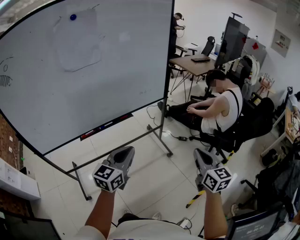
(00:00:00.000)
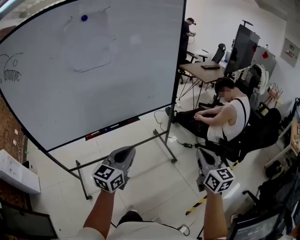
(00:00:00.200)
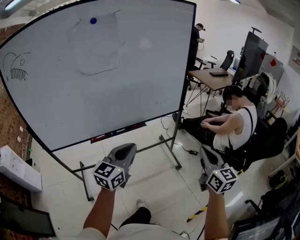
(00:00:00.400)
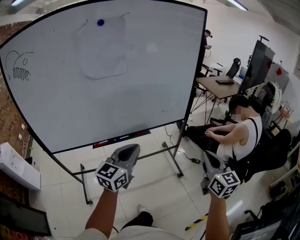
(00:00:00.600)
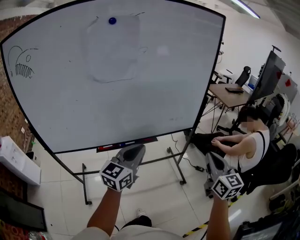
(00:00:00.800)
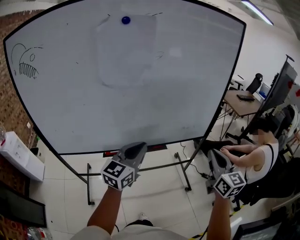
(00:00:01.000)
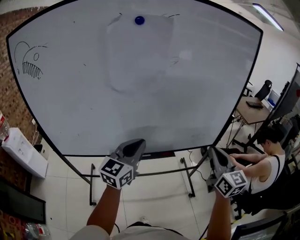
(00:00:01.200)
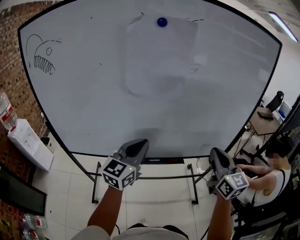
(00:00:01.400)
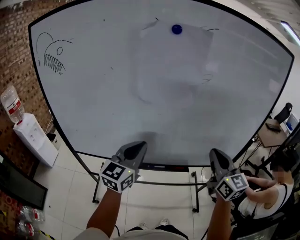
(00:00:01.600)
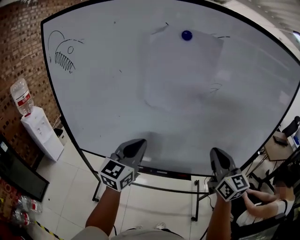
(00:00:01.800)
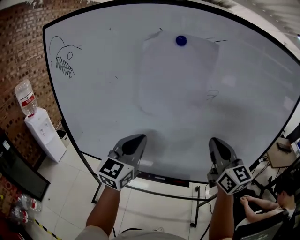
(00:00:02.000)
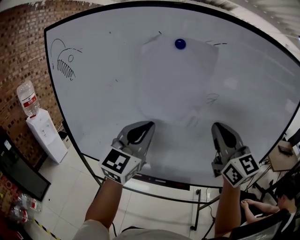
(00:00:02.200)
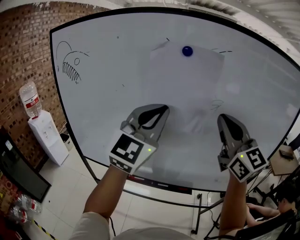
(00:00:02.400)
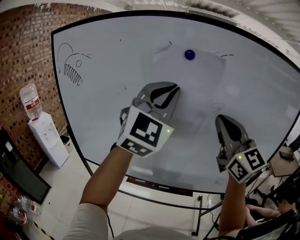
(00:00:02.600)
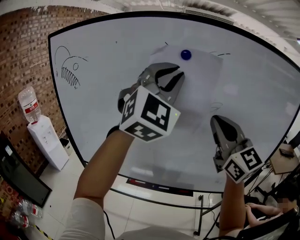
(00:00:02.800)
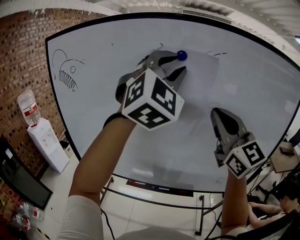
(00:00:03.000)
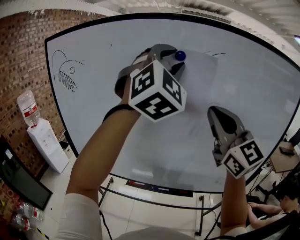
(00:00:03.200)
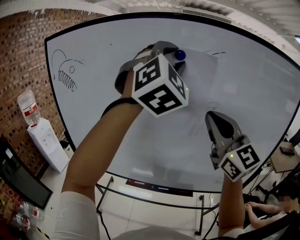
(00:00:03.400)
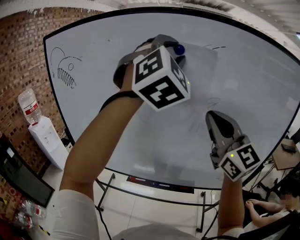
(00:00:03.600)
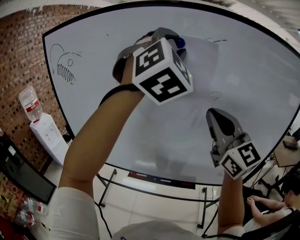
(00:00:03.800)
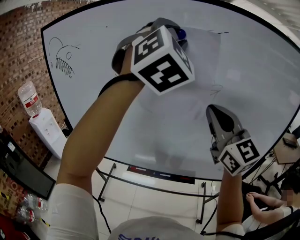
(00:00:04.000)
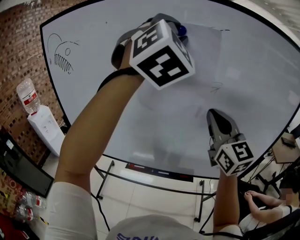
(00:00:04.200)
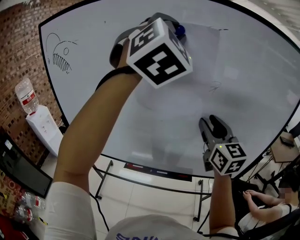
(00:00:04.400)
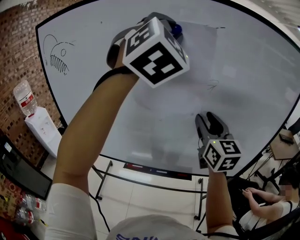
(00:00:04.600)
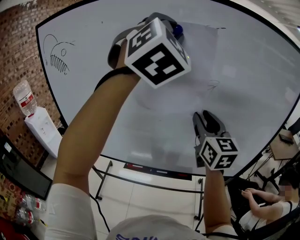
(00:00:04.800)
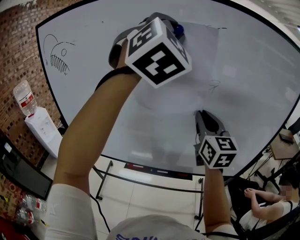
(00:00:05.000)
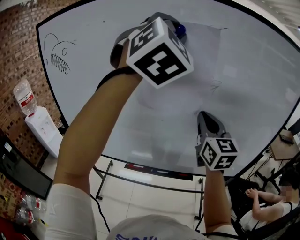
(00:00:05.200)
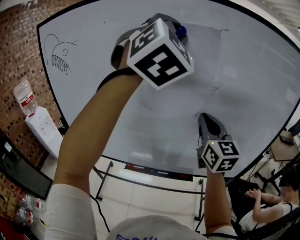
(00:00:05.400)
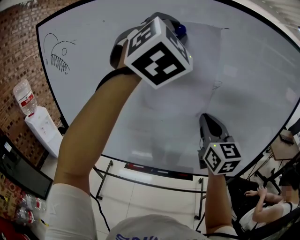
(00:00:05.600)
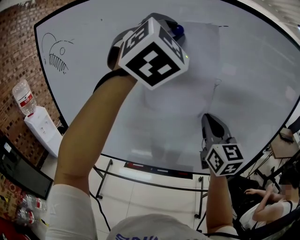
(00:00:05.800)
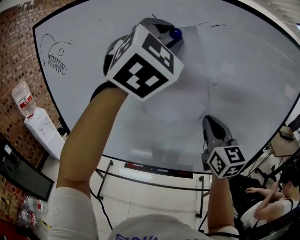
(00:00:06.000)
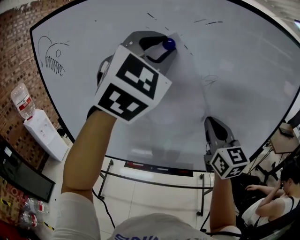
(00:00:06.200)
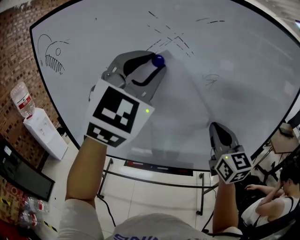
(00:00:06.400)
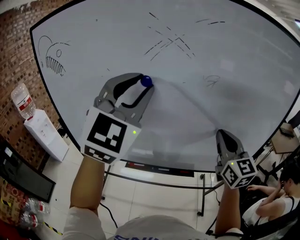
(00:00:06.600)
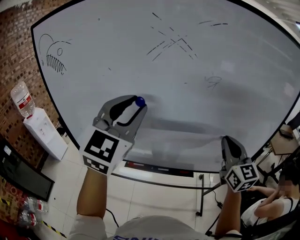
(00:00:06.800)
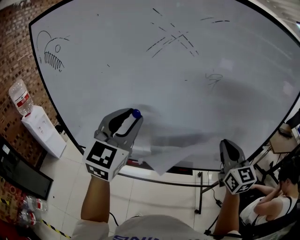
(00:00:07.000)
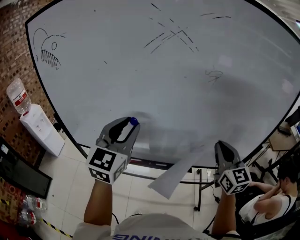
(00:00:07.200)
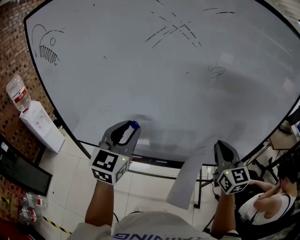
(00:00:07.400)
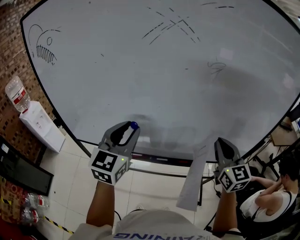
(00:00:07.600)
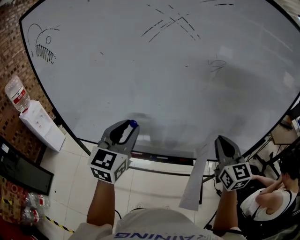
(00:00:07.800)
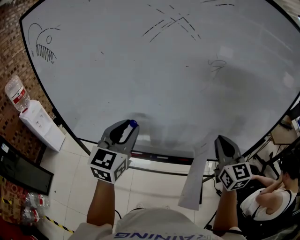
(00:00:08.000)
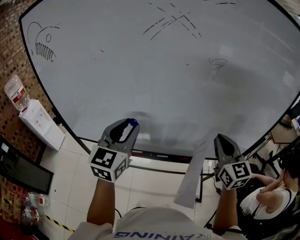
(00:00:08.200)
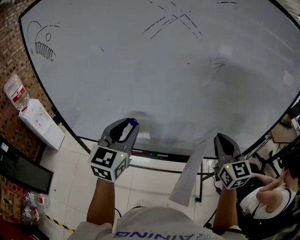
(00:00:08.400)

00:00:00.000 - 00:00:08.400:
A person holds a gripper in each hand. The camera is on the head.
00:00:00.000 - 00:00:01.400: The right gripper shifts approximately 40 cm forward and to the left, and turns by approximately 30 degrees, while the left gripper shifts approximately 30 cm forward, to the left and upward, and changes its angle by roughly 30 degrees.
00:00:01.400 - 00:00:02.800: The left gripper goes about 35 cm upward, and rolls clockwise, seen from behind, by approximately 60 degrees. The right gripper shifts about 25 cm upward, forward and to the left, and changes its angle by approximately 30 degrees.
00:00:02.800 - 00:00:04.200: The left gripper changes place by some 5 cm, and opens up. Meanwhile the right gripper travels downward by roughly 5 cm.
00:00:04.200 - 00:00:05.600: The right gripper opens and closes again.
00:00:05.600 - 00:00:07.000: The left gripper shifts about 25 cm downward, and swivels some 40 degrees. Meanwhile the right gripper travels to the right, downward and backward by about 15 cm.
00:00:07.000 - 00:00:08.400: The left gripper moves downward, some 10 cm.

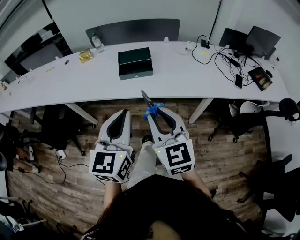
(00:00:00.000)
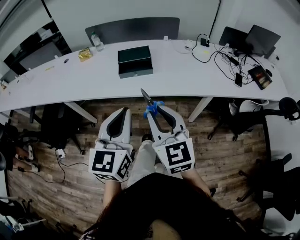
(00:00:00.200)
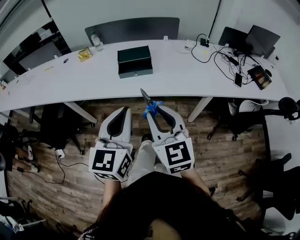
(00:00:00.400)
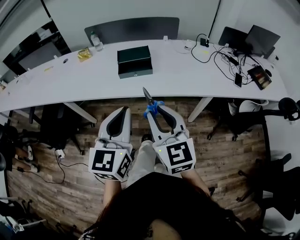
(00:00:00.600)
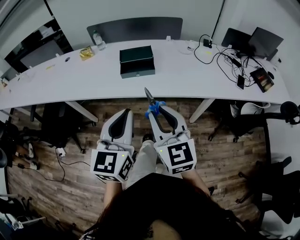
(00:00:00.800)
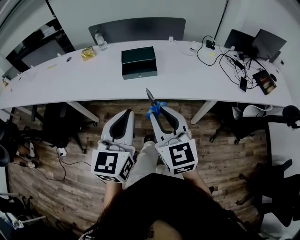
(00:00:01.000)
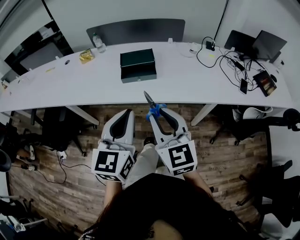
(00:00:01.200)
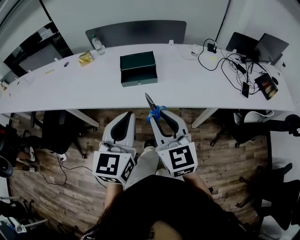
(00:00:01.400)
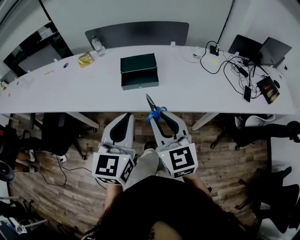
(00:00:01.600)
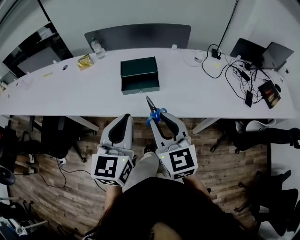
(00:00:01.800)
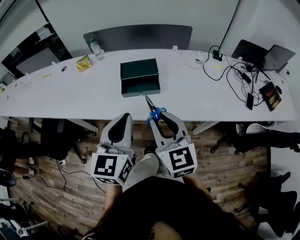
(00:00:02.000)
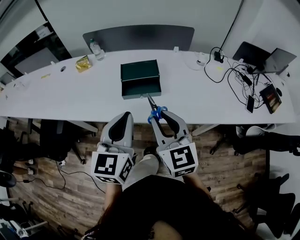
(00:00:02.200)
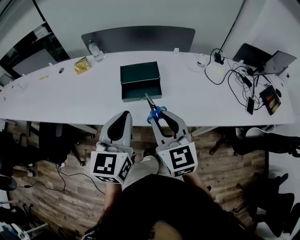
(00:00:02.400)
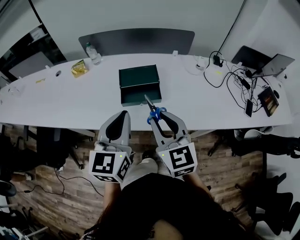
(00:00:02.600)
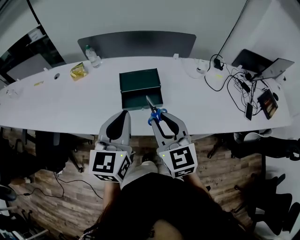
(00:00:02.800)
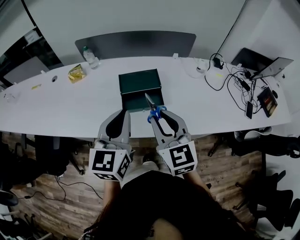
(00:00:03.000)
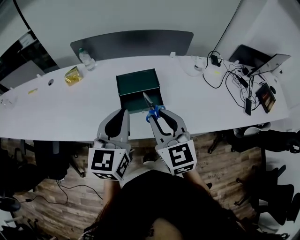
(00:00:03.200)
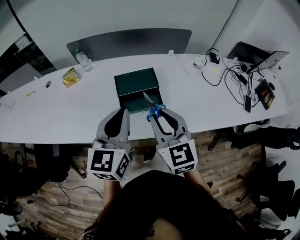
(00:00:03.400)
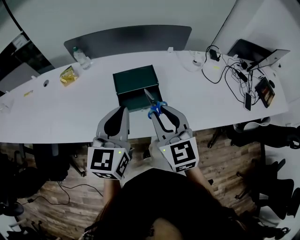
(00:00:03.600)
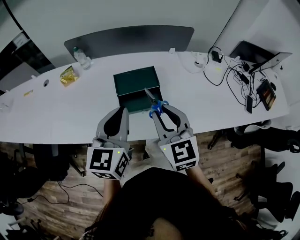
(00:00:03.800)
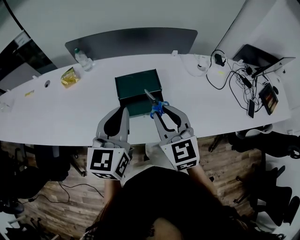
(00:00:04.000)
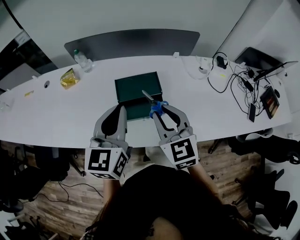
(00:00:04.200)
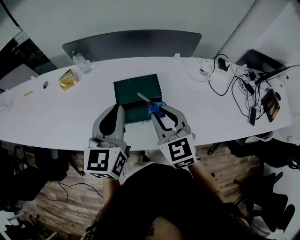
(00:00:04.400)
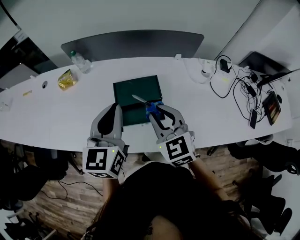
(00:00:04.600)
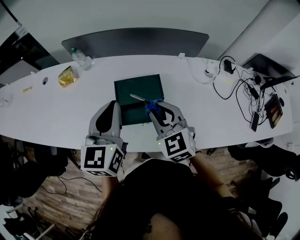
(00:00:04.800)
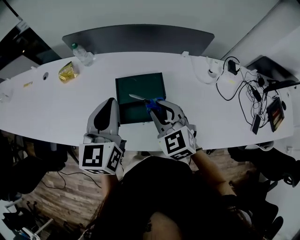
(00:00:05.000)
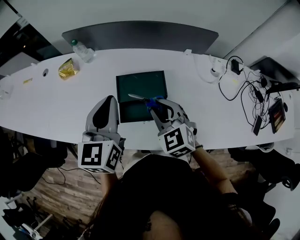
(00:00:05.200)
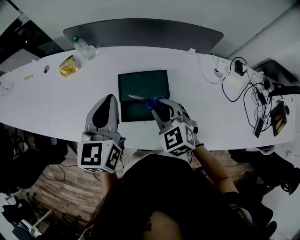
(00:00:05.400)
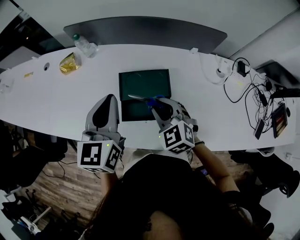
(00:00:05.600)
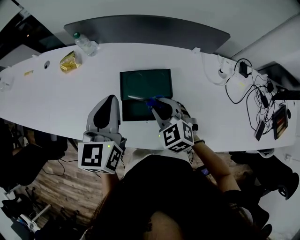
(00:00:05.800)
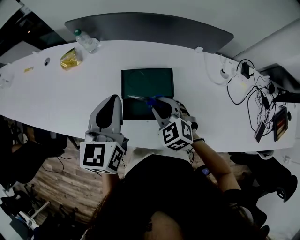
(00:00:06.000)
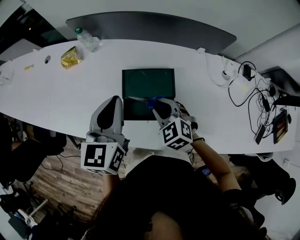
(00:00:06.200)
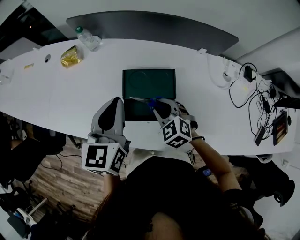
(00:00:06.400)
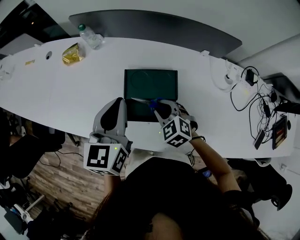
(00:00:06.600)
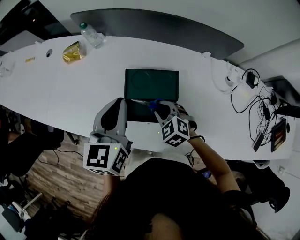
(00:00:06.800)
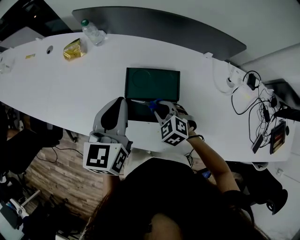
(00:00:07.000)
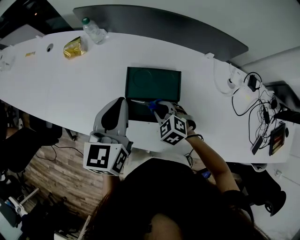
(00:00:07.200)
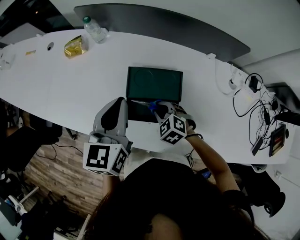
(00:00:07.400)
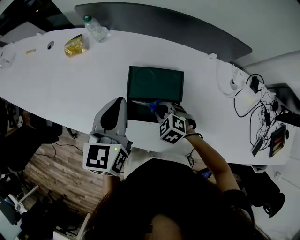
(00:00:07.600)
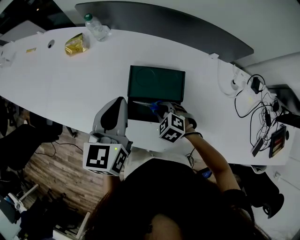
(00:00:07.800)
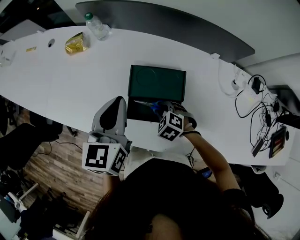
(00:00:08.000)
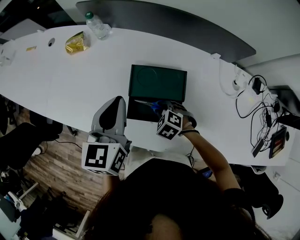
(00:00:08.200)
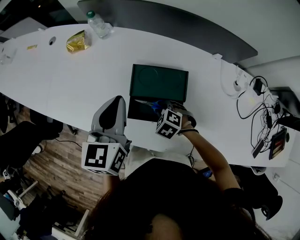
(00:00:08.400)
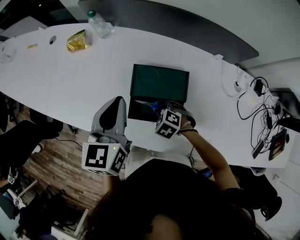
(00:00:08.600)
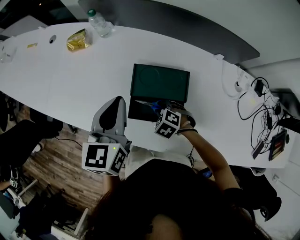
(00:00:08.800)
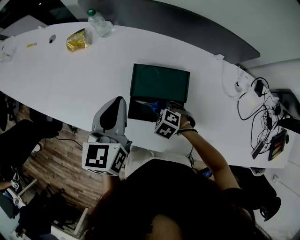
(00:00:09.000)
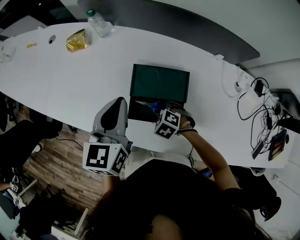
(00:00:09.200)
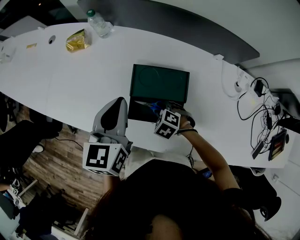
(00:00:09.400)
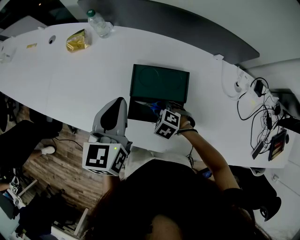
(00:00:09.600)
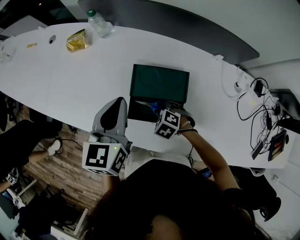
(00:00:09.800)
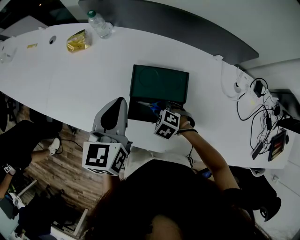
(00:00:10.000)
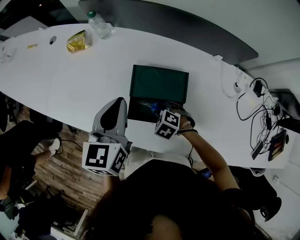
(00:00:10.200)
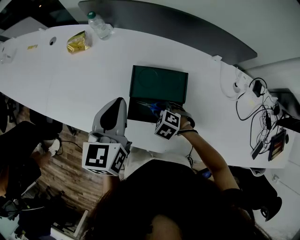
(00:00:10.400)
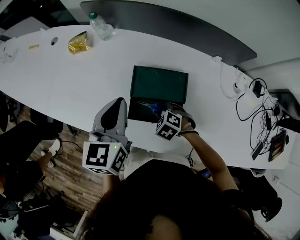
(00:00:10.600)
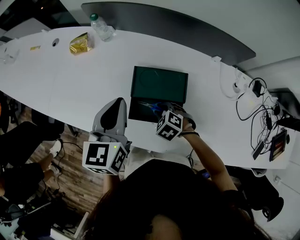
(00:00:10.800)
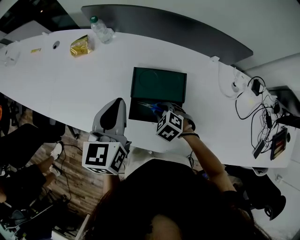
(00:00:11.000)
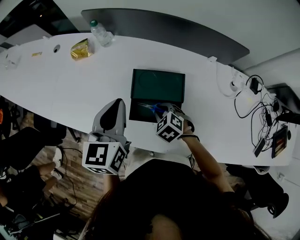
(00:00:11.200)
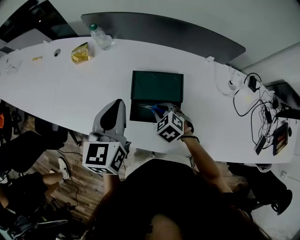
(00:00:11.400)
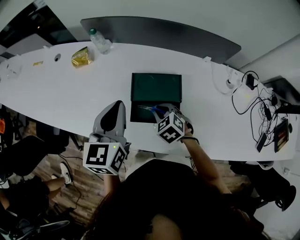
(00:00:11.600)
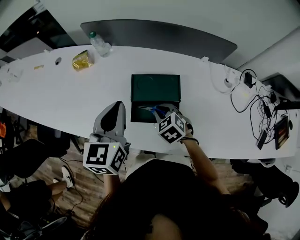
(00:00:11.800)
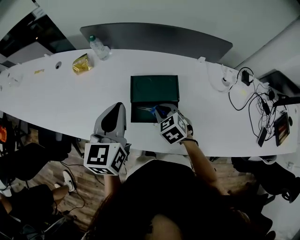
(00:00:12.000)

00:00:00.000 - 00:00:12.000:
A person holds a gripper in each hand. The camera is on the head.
00:00:00.000 - 00:00:01.600: The two grippers go approximately 10 cm forward.
00:00:01.600 - 00:00:03.000: Both grippers travel together forward, roughly 20 cm.
00:00:03.000 - 00:00:04.400: Both grippers move forward, approximately 15 cm.
00:00:04.400 - 00:00:06.000: The left gripper moves forward, some 10 cm. Meanwhile the right gripper travels downward and forward by some 15 cm, and swivels roughly 30 degrees.
00:00:06.000 - 00:00:07.600: The right gripper travels downward by some 10 cm, and swivels roughly 20 degrees.
00:00:07.600 - 00:00:09.000: The grippers make only small movements.
00:00:09.000 - 00:00:10.400: Neither gripper changes place.
00:00:10.400 - 00:00:12.000: The right gripper is displaced upward by some 10 cm, and changes its angle by approximately 40 degrees. Meanwhile the left gripper travels upward and backward by some 5 cm.

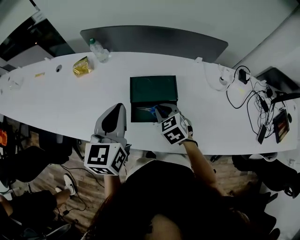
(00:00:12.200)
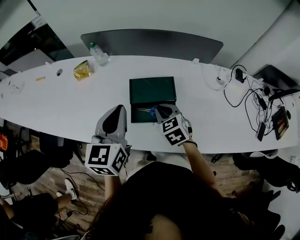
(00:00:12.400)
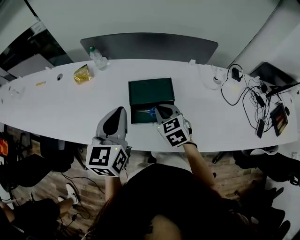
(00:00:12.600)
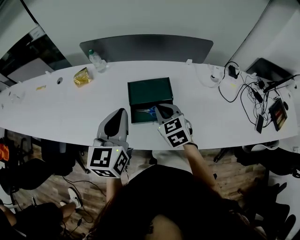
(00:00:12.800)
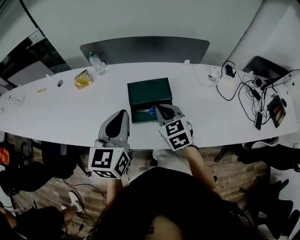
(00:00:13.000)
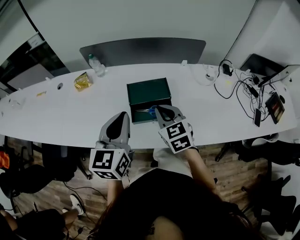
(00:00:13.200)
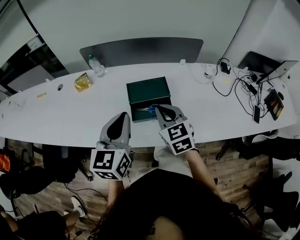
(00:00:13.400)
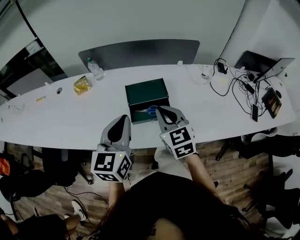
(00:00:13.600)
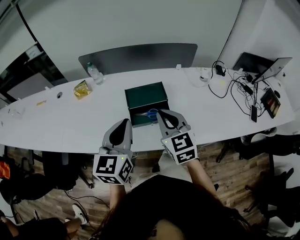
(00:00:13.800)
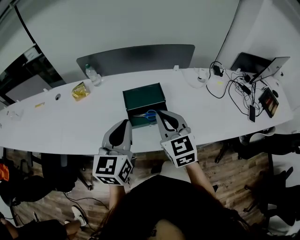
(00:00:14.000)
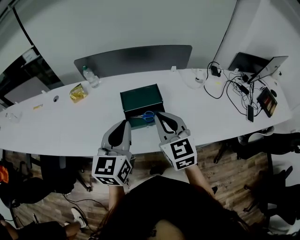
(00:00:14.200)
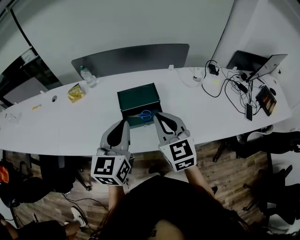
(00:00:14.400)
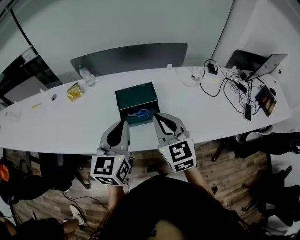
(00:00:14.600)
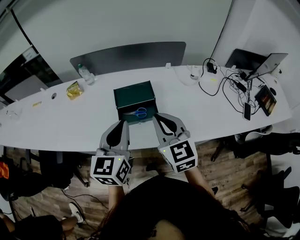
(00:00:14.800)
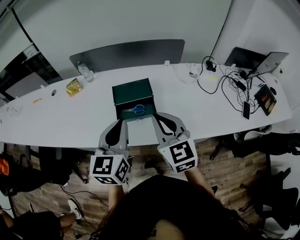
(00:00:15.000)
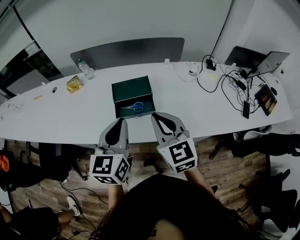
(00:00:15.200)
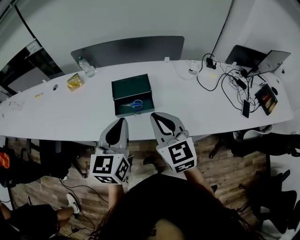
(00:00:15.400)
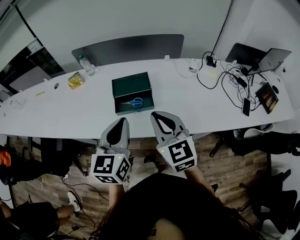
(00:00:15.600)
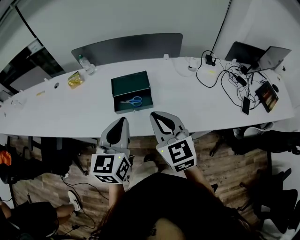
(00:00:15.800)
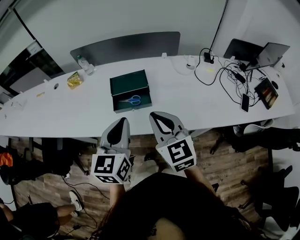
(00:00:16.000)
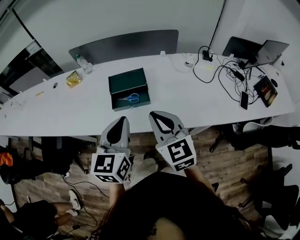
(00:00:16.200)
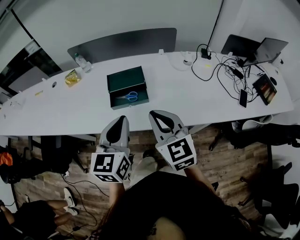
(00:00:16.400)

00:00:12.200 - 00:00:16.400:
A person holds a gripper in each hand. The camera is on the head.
00:00:12.200 - 00:00:13.600: The right gripper travels upward and backward by some 20 cm, and rotates some 30 degrees, while the left gripper moves backward, roughly 10 cm.
00:00:13.600 - 00:00:15.000: The left gripper travels to the right by approximately 10 cm; the right gripper moves backward, to the right and upward, approximately 10 cm.
00:00:15.000 - 00:00:16.400: The left gripper heads backward and to the right, covering approximately 10 cm, while the right gripper heads backward, covering about 5 cm.
